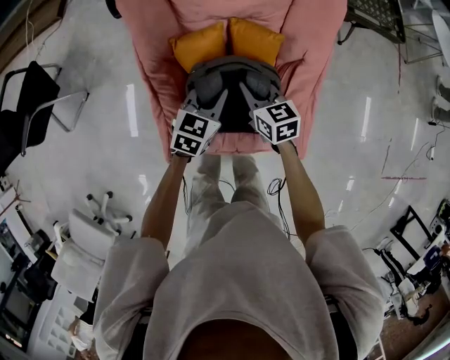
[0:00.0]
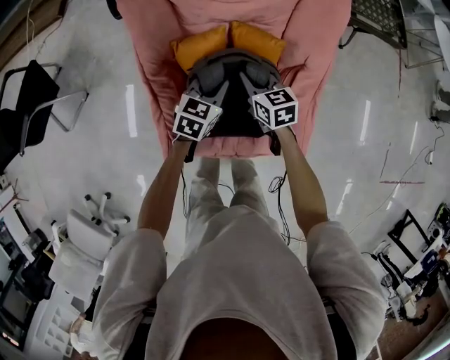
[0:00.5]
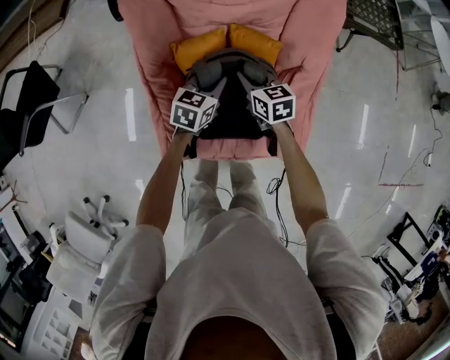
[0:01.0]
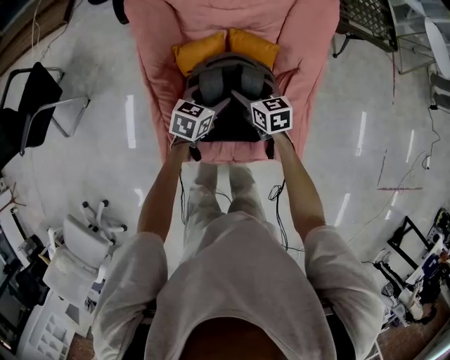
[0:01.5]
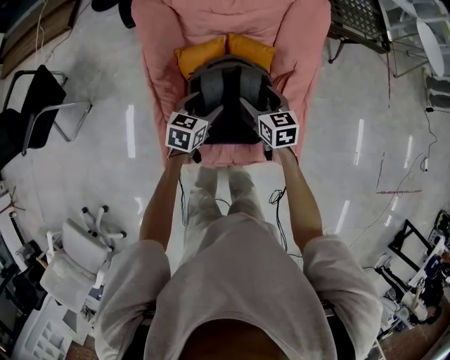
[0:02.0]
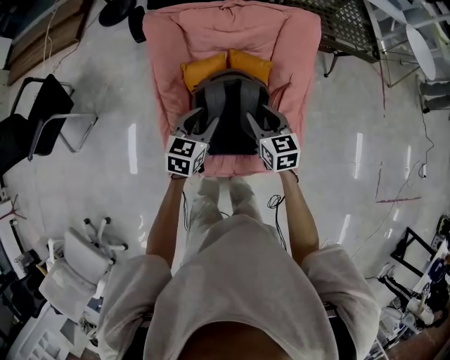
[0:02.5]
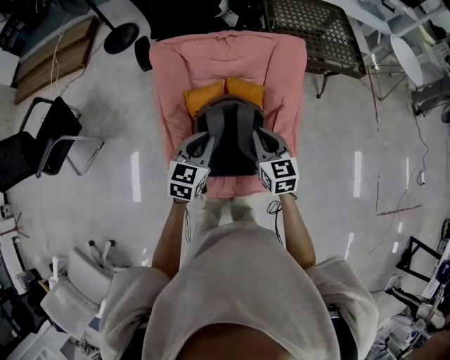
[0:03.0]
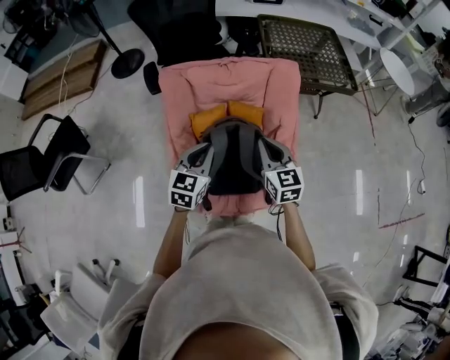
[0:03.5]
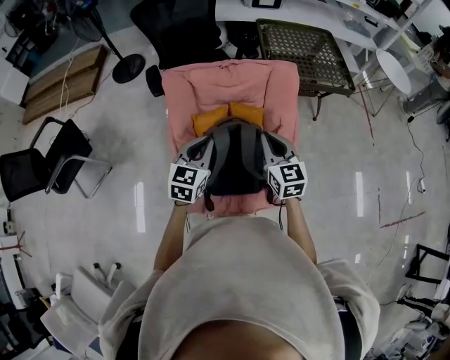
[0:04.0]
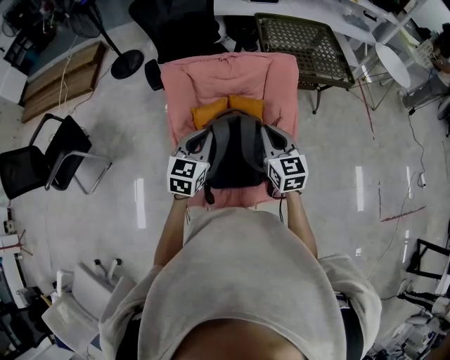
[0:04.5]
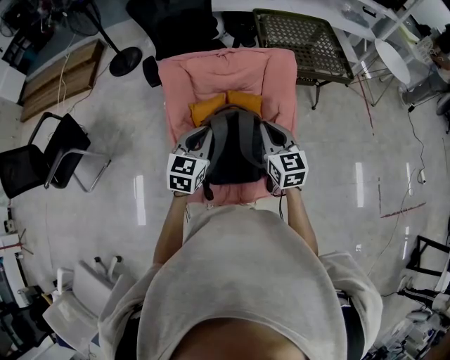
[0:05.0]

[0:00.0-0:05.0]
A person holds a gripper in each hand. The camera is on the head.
0:00.0 to 0:02.5: The grippers both shift upward and backward by some 10 cm. The left gripper opens its fingers; the right gripper opens its fingers.
0:02.5 to 0:05.0: The two grippers go about 15 cm upward. The right gripper closes its fingers. The left gripper closes its fingers.

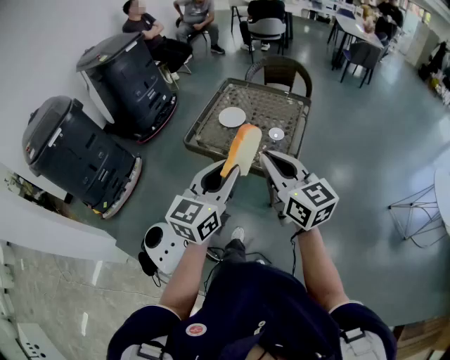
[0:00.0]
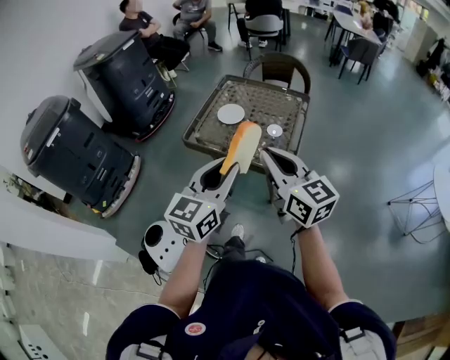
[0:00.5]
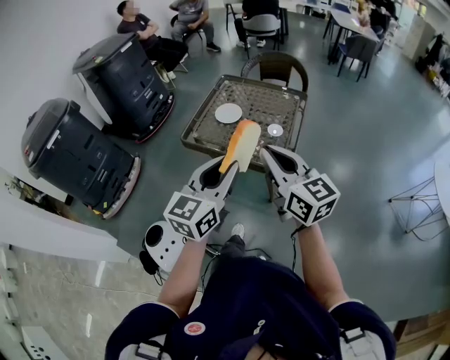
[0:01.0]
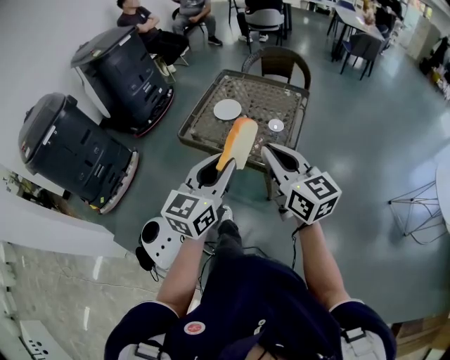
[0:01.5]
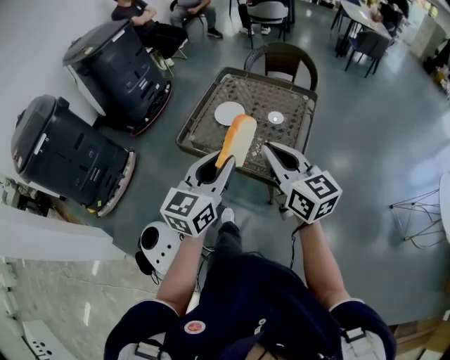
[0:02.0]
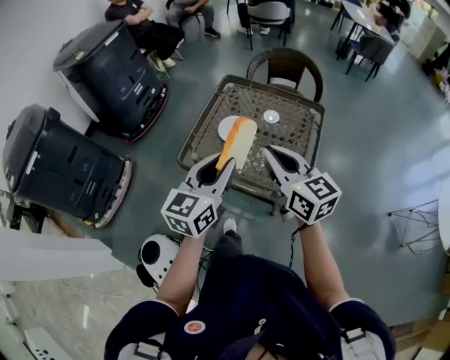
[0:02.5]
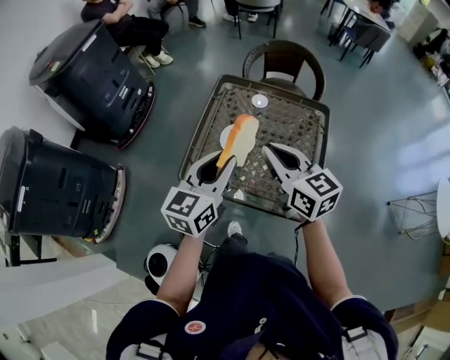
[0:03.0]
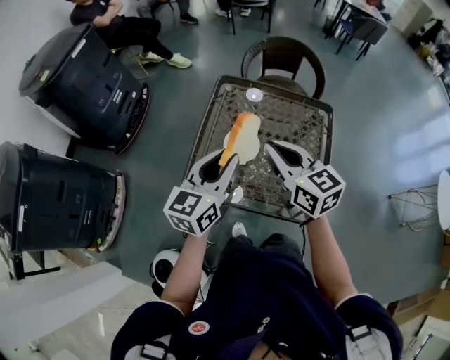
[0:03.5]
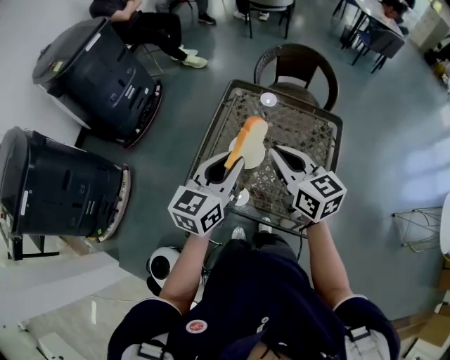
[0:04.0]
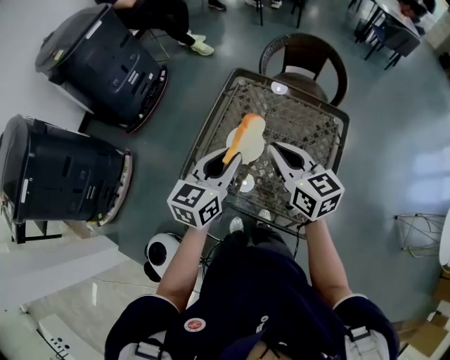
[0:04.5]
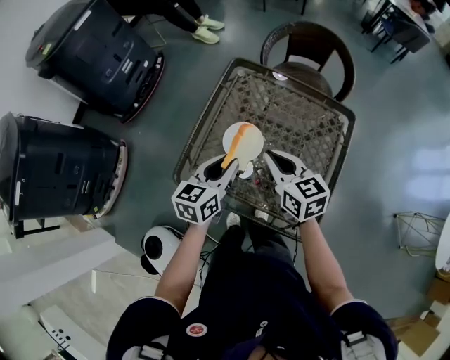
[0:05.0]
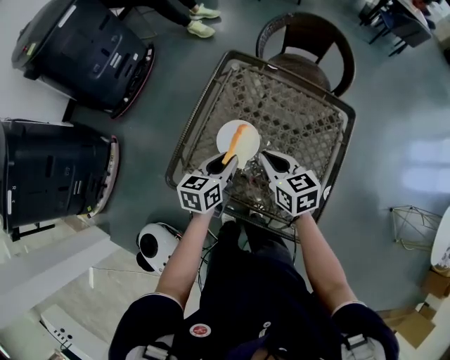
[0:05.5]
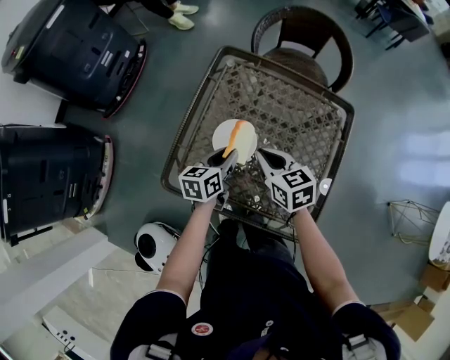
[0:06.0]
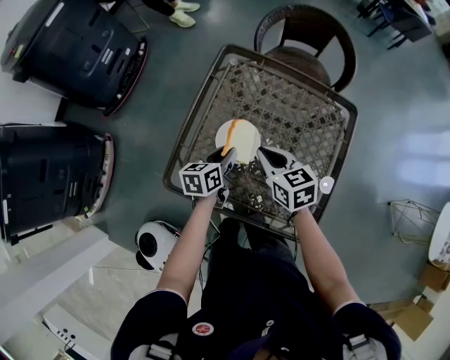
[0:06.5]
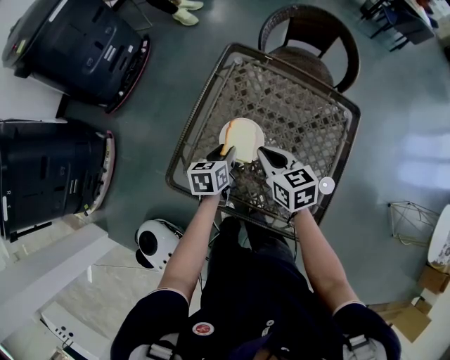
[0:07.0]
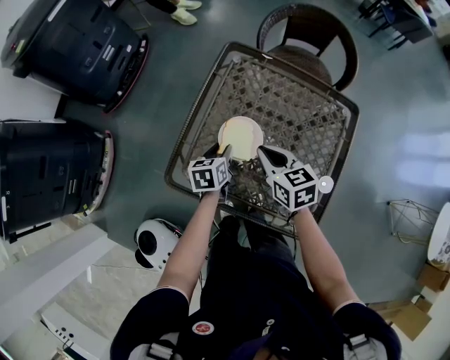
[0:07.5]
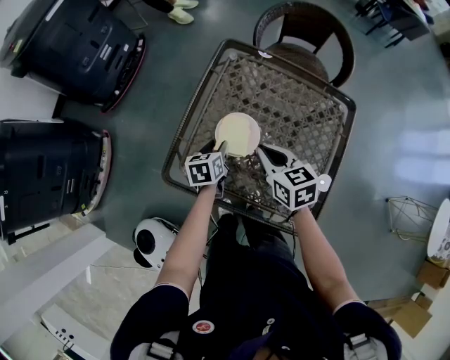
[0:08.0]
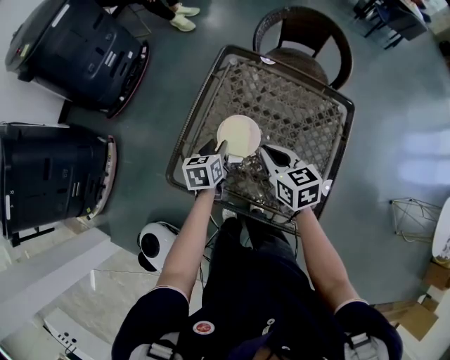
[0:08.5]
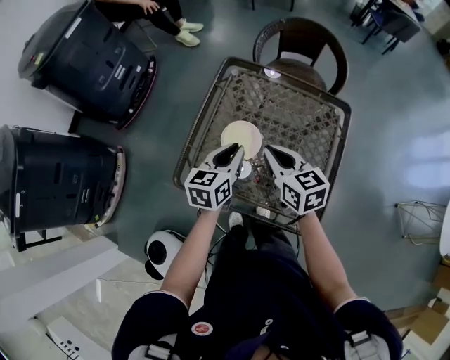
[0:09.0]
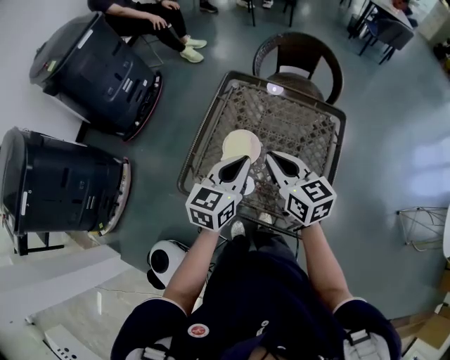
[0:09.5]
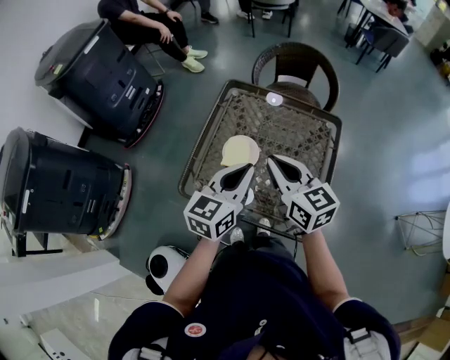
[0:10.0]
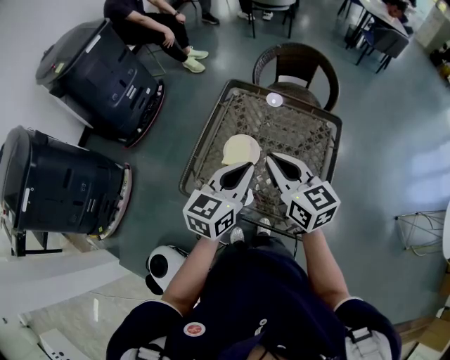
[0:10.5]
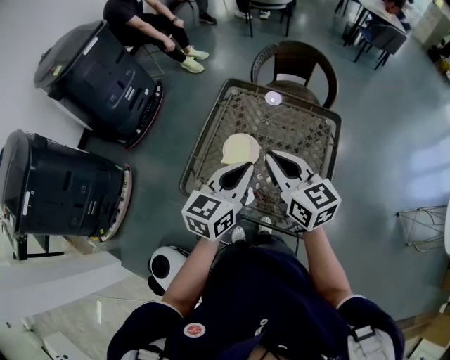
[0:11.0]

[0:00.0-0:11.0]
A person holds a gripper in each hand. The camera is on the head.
0:00.0 to 0:02.0: Both grippers move forward, roughly 10 cm.
0:02.0 to 0:03.5: The grippers both shift forward by about 30 cm.
0:03.5 to 0:05.5: The two grippers go some 20 cm downward. The left gripper changes its angle by approximately 30 degrees; the right gripper turns by about 20 degrees.
0:05.5 to 0:07.5: The left gripper moves downward, roughly 10 cm, and rotates roughly 20 degrees.
0:07.5 to 0:09.0: The right gripper is displaced upward by roughly 10 cm, while the left gripper shifts about 15 cm upward, rotates approximately 30 degrees, and closes up.
0:09.0 to 0:11.0: Both grippers travel together upward and backward, some 15 cm.

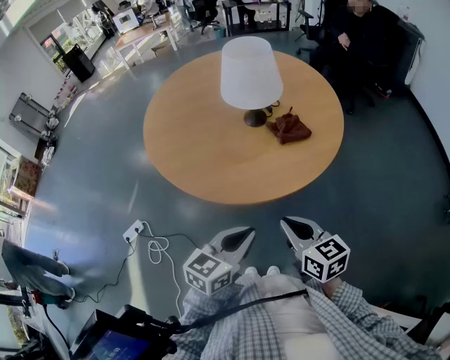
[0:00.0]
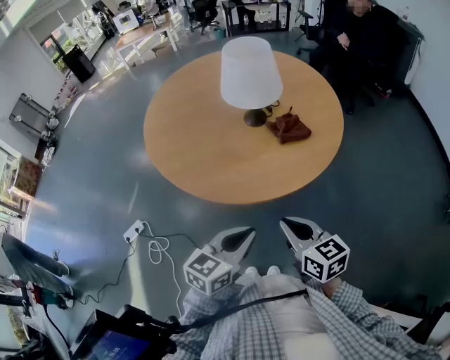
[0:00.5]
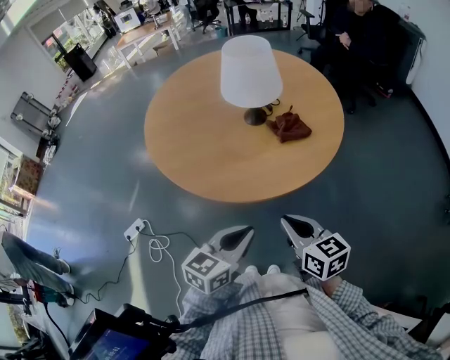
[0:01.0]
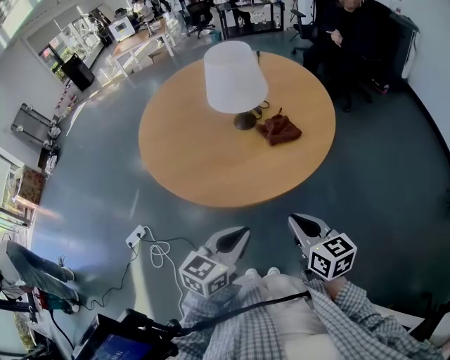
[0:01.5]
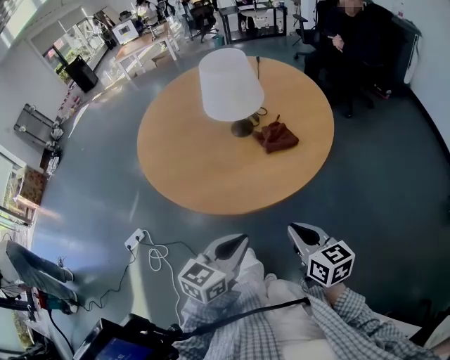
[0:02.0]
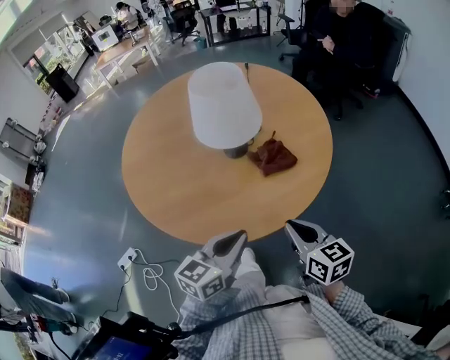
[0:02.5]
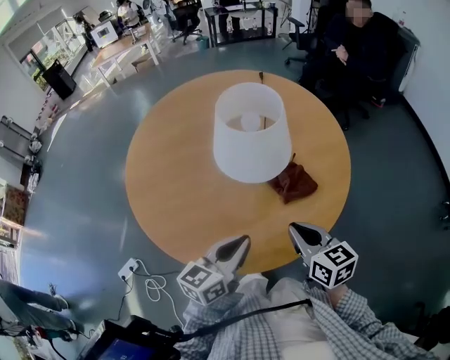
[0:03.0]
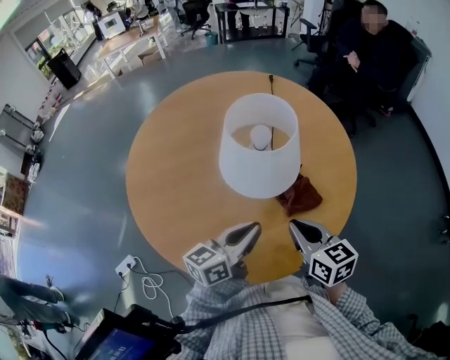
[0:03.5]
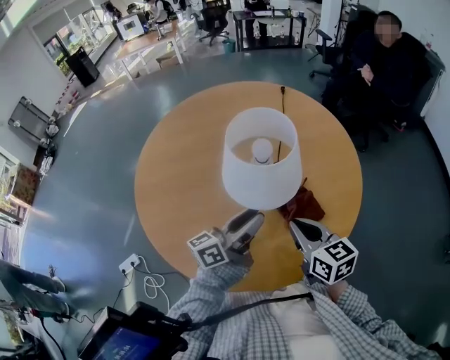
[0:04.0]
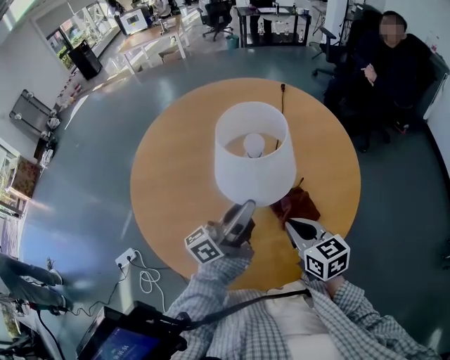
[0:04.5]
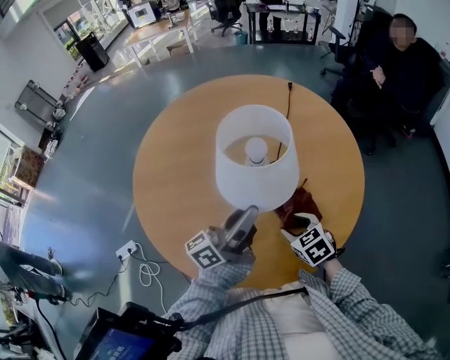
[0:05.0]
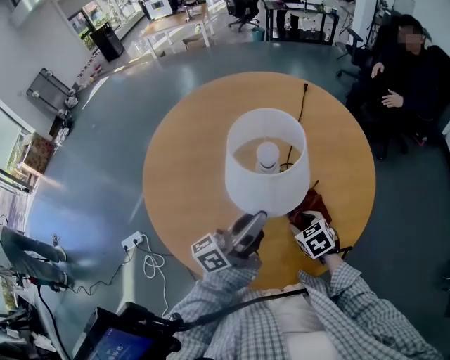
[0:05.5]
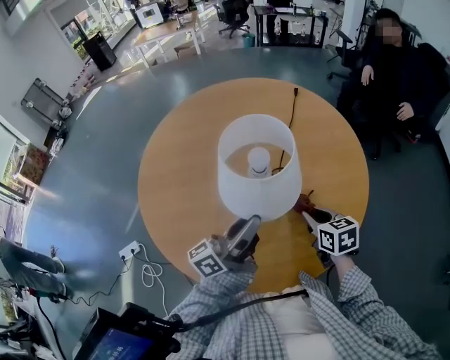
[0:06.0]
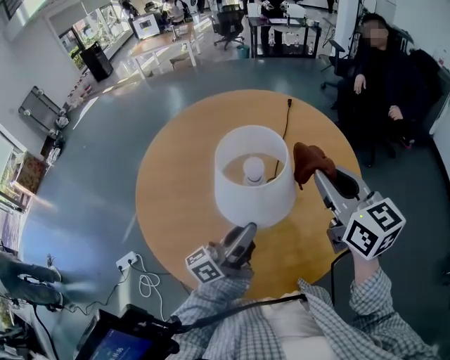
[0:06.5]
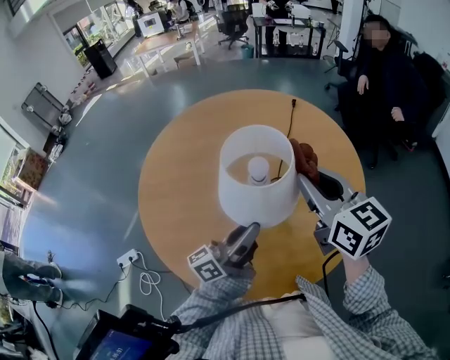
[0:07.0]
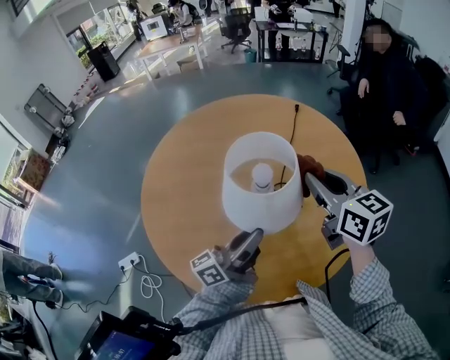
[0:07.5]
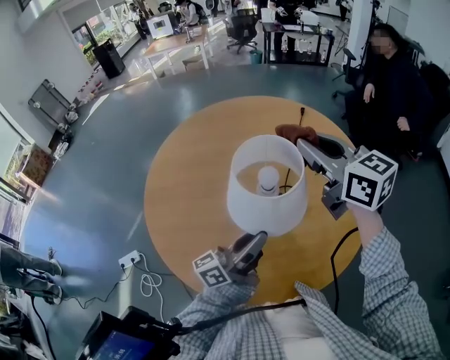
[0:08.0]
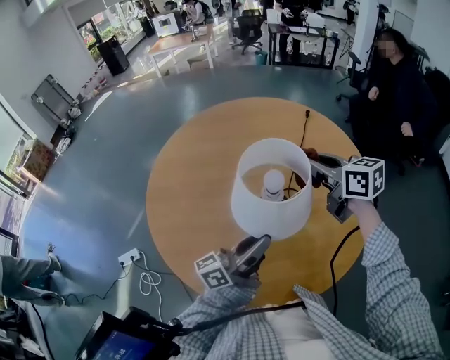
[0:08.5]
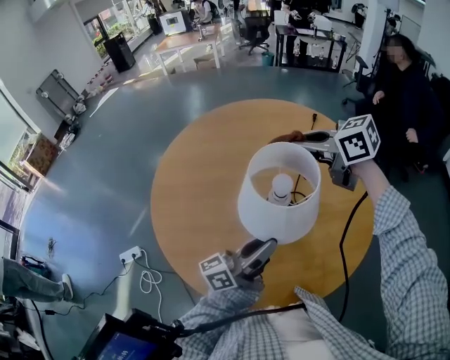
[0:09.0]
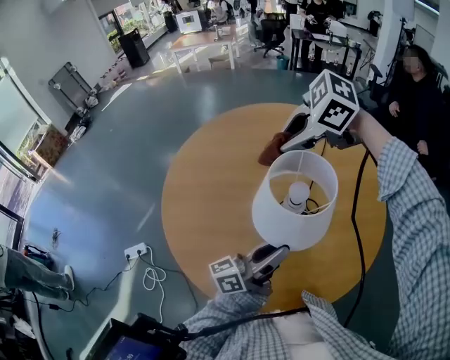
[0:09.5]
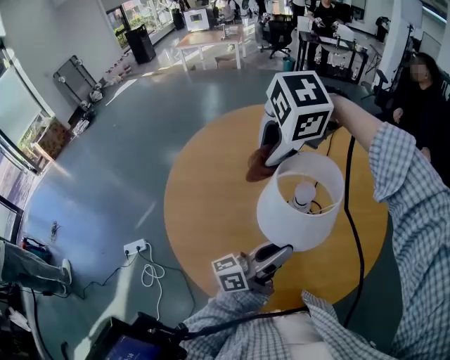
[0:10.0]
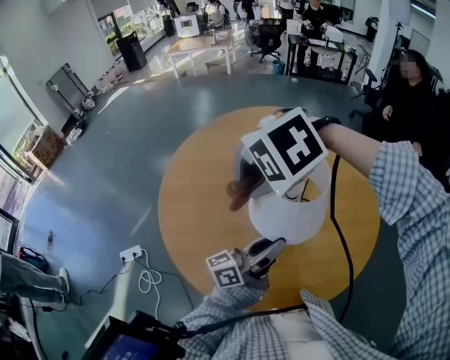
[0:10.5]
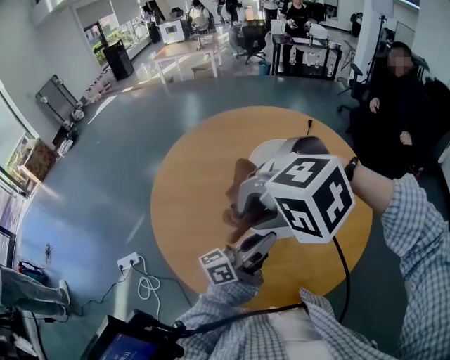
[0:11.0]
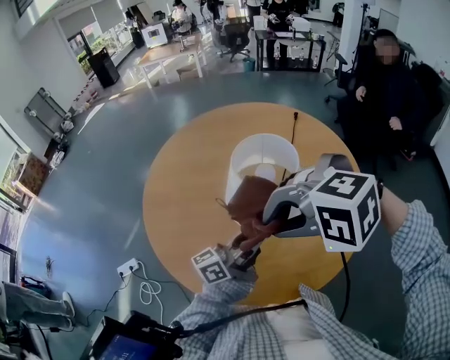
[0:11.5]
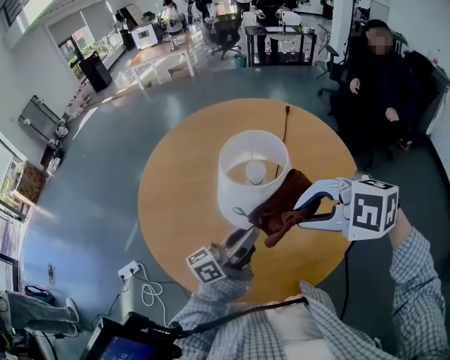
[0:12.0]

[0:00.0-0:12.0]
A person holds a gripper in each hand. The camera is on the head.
0:00.0 to 0:02.0: The right gripper moves to the right, approximately 5 cm.
0:02.0 to 0:04.0: The two grippers go roughly 30 cm forward. The left gripper turns by about 40 degrees, and opens.
0:04.0 to 0:06.0: The right gripper is displaced downward, forward and to the right by some 15 cm, and opens, then closes again.
0:06.0 to 0:08.0: The right gripper moves upward, roughly 30 cm, and tips its fingers upward by about 30 degrees.
0:08.0 to 0:10.0: The right gripper changes place by about 20 cm, and angles its fingers downward, by some 60 degrees.
0:10.0 to 0:12.0: The right gripper shifts by approximately 20 cm, and swivels approximately 30 degrees.
